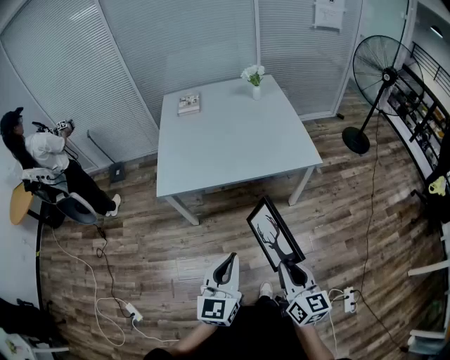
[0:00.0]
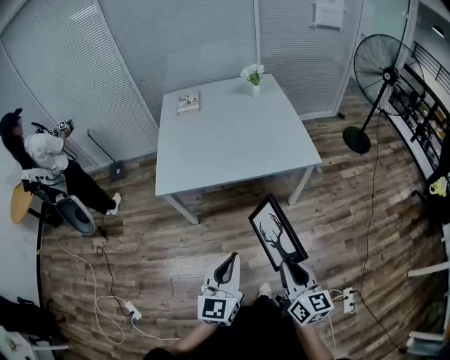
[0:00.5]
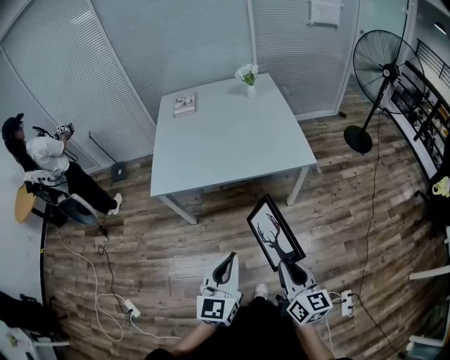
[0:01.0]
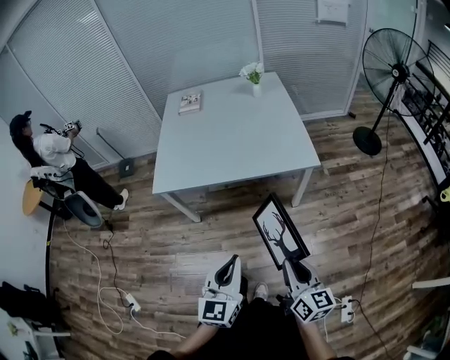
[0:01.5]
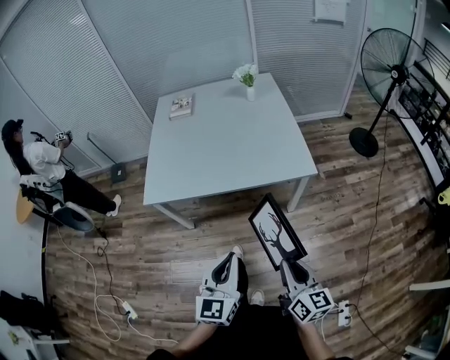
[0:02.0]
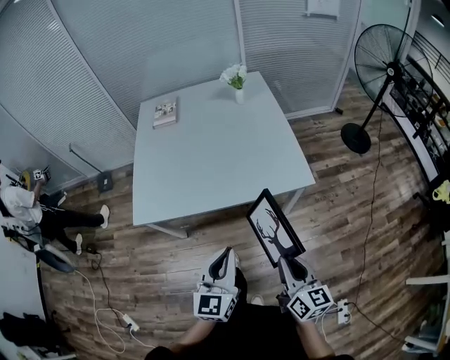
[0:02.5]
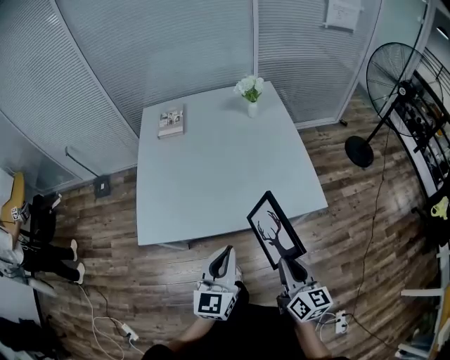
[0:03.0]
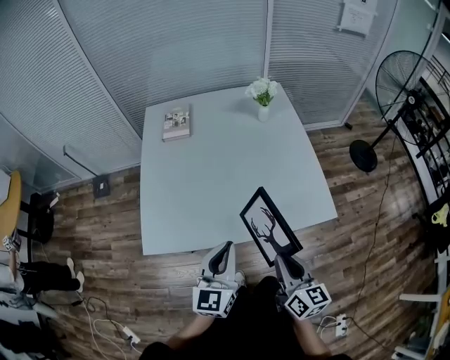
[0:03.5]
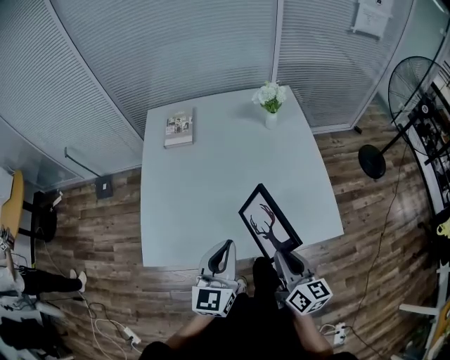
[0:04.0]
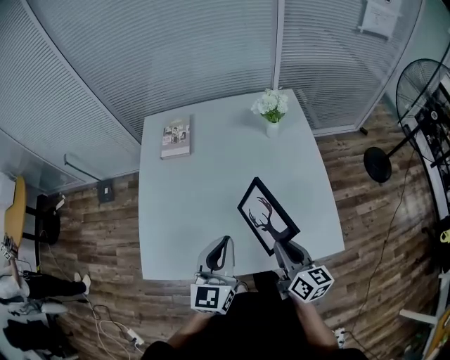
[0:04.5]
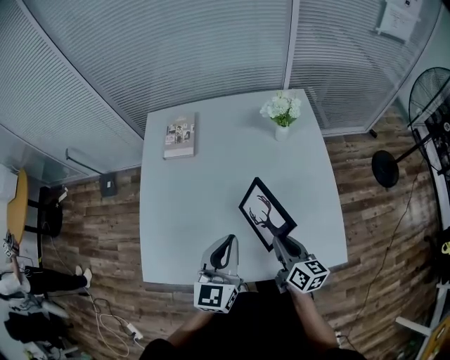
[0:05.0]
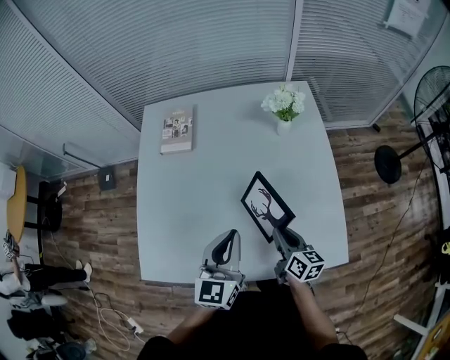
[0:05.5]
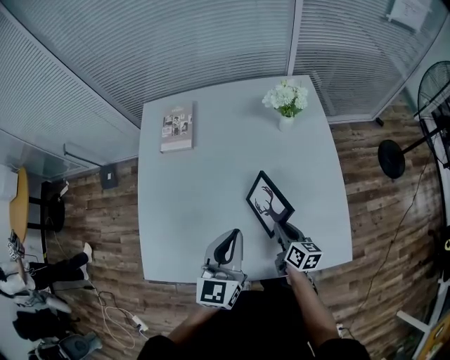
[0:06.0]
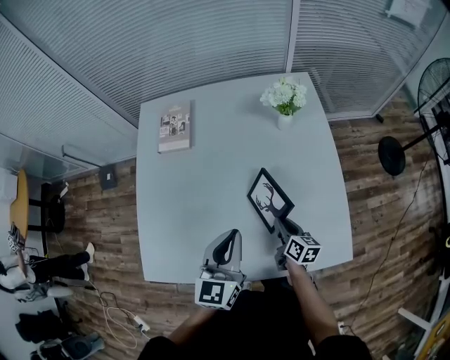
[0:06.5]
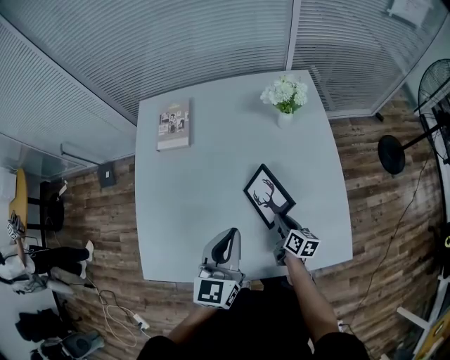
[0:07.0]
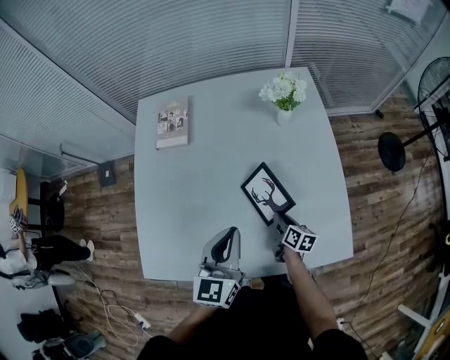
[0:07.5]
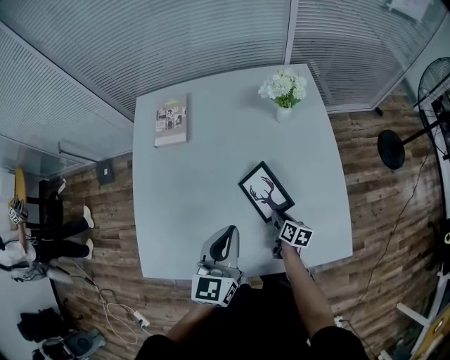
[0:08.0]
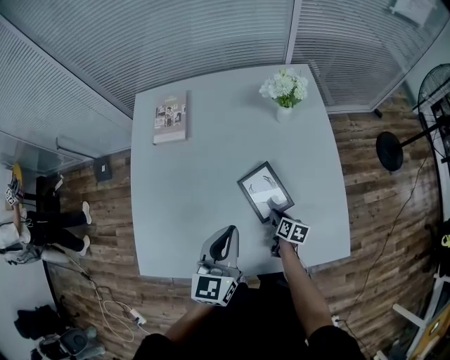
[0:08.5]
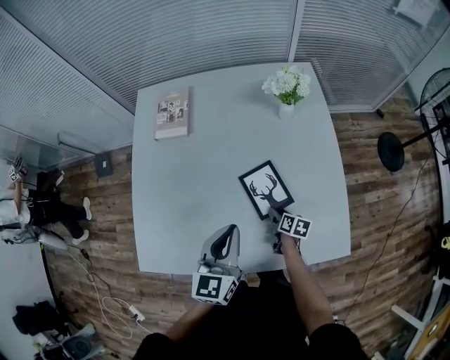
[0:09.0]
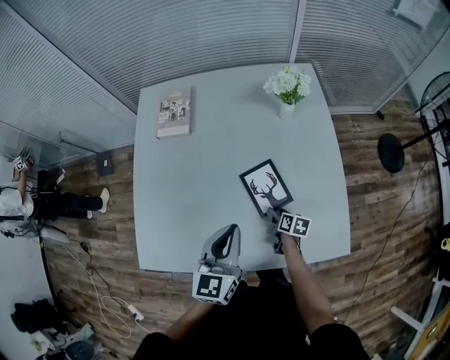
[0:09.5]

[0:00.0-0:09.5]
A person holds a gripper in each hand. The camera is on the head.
0:00.0 to 0:02.0: Both grippers move to the right and forward, roughly 15 cm.
0:02.0 to 0:04.0: The two grippers travel together, forward, approximately 40 cm.
0:04.0 to 0:05.5: The left gripper goes roughly 15 cm forward. Meanwhile the right gripper goes about 25 cm forward and downward.
0:05.5 to 0:07.5: The right gripper goes roughly 15 cm downward.
0:07.5 to 0:09.5: The right gripper travels downward by about 5 cm, and opens its fingers.

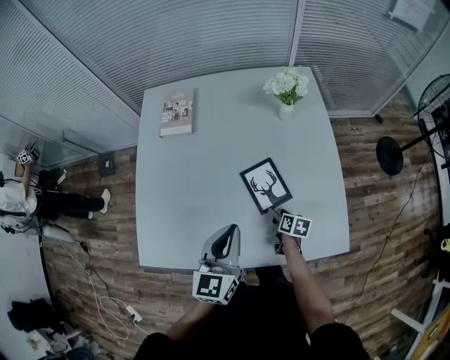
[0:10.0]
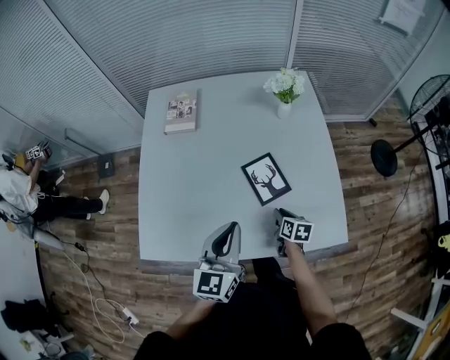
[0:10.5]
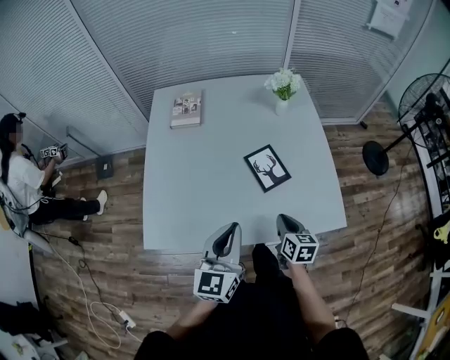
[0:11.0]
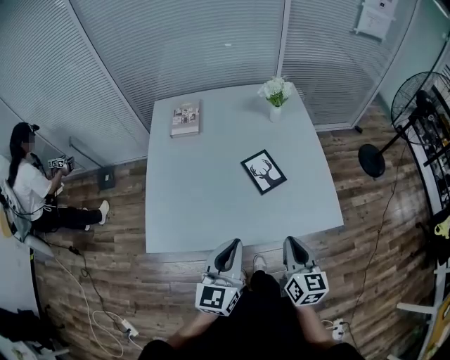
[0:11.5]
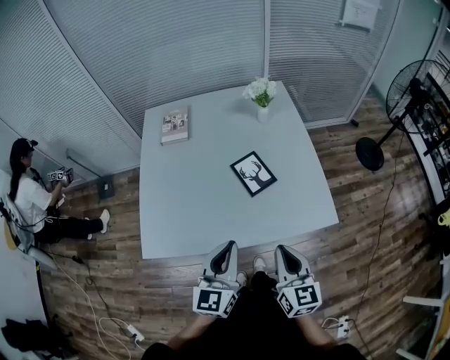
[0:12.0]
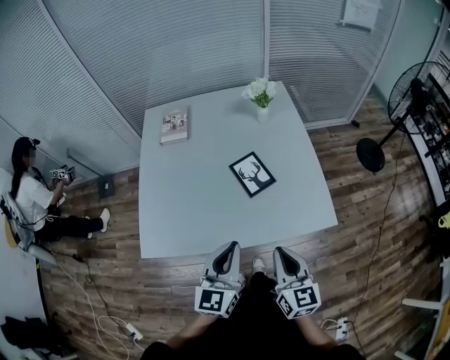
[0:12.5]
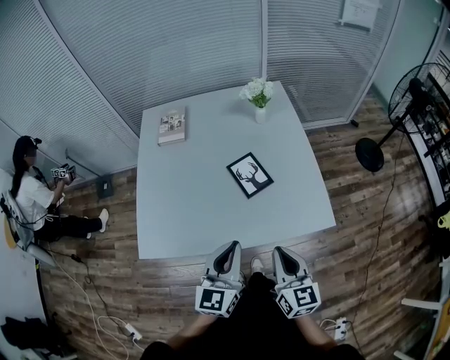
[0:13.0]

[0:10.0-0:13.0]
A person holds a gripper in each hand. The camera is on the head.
0:10.0 to 0:11.5: The right gripper moves upward and backward, approximately 40 cm, tips its fingers upward by some 30 degrees, and closes its fingers. Meanwhile the left gripper travels backward by roughly 20 cm.
0:11.5 to 0:13.0: The left gripper shifts approximately 5 cm to the right.

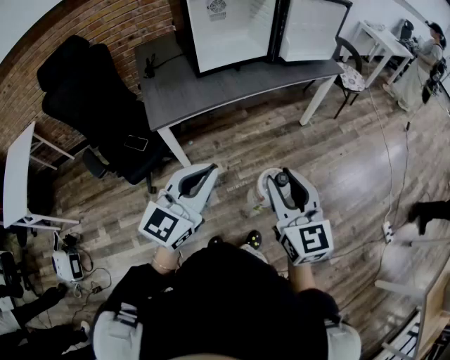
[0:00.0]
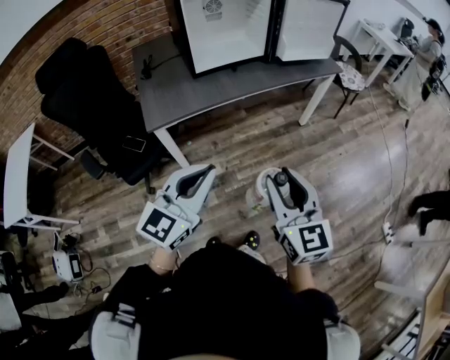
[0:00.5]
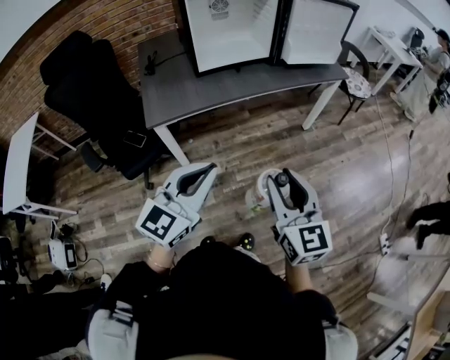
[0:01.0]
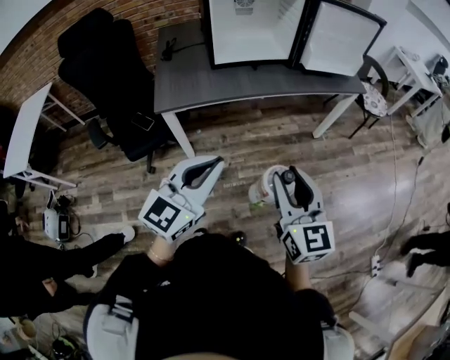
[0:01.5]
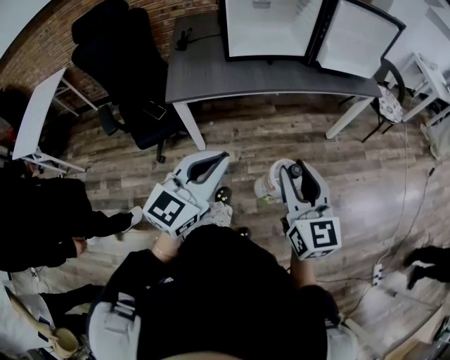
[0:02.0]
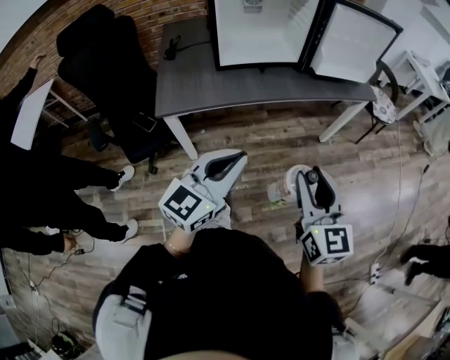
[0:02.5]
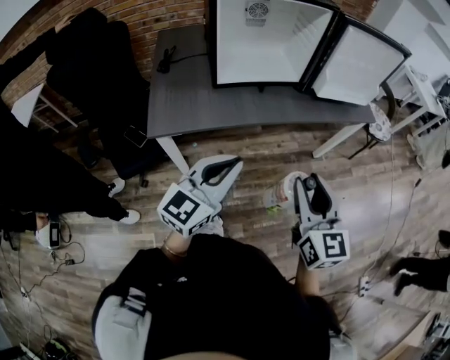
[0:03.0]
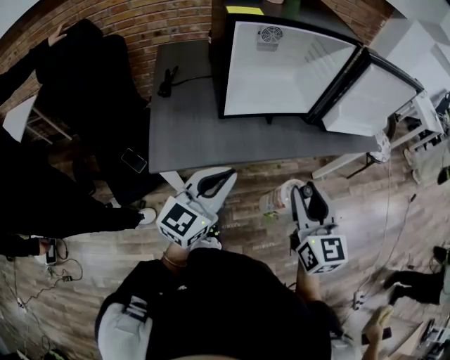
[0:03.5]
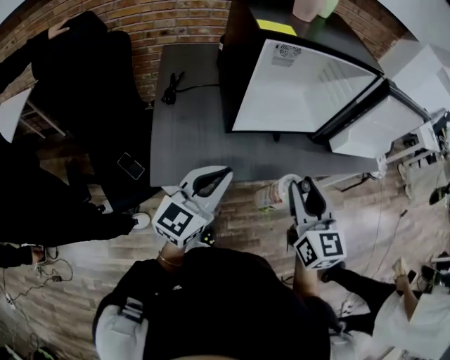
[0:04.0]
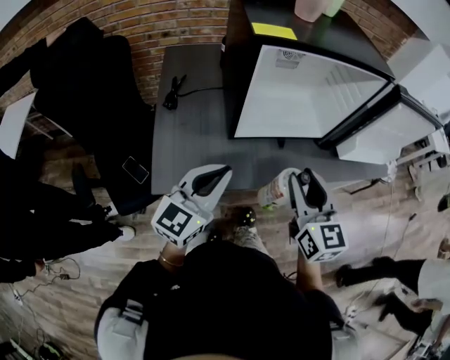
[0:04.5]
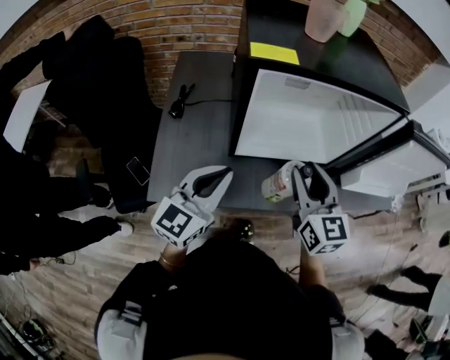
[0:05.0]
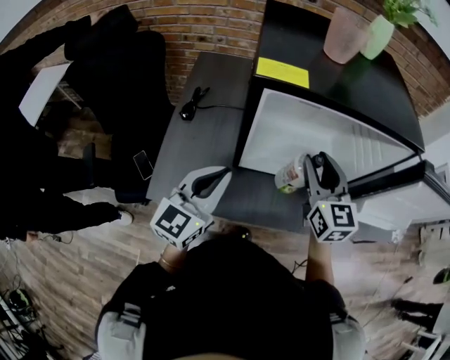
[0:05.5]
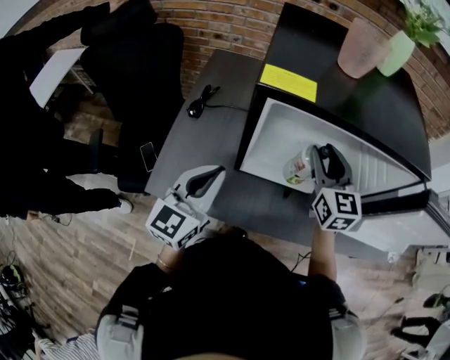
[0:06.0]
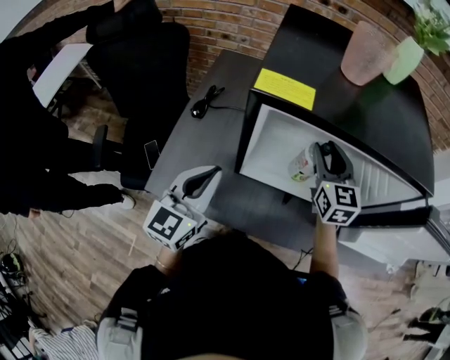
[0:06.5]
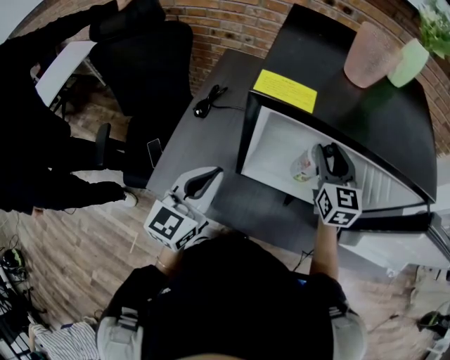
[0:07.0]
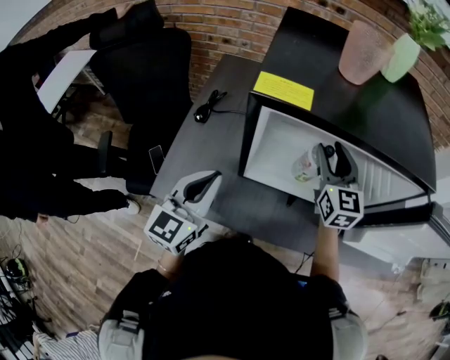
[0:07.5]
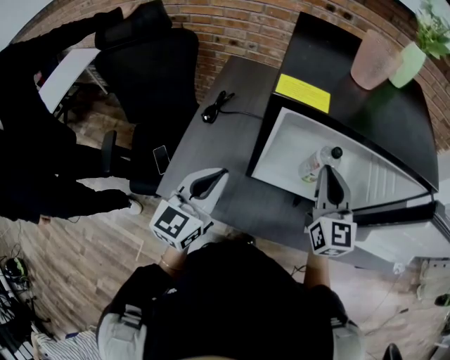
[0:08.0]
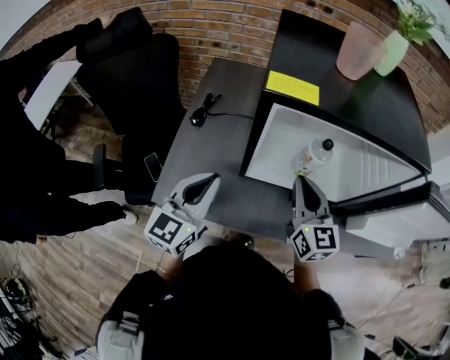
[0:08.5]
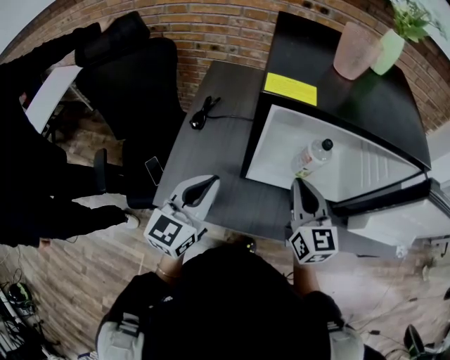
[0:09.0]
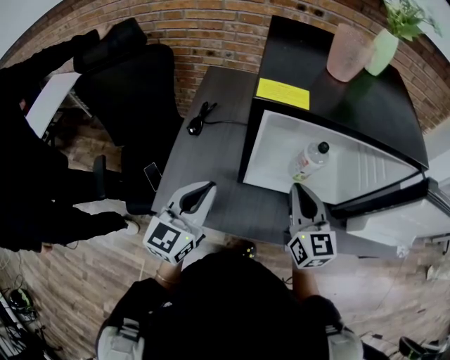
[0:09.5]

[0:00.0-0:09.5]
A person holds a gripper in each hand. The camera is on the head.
0:00.0 to 0:02.0: The left gripper heads to the right, covering approximately 5 cm. The right gripper is displaced forward and to the right by roughly 10 cm.
0:02.0 to 0:04.0: The grippers both shift forward and to the left by approximately 35 cm.
0:04.0 to 0:05.5: The left gripper is displaced forward by some 15 cm, while the right gripper heads forward, covering about 25 cm.
0:05.5 to 0:07.5: The right gripper shifts roughly 10 cm forward.
0:07.5 to 0:09.5: The right gripper goes roughly 15 cm backward and to the left, and closes its fingers.

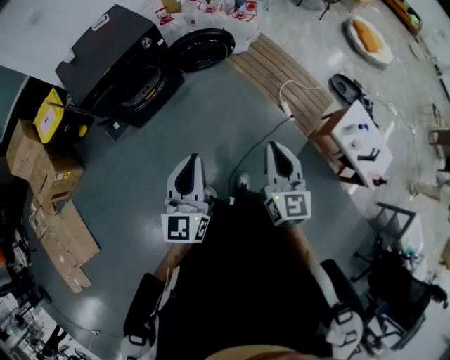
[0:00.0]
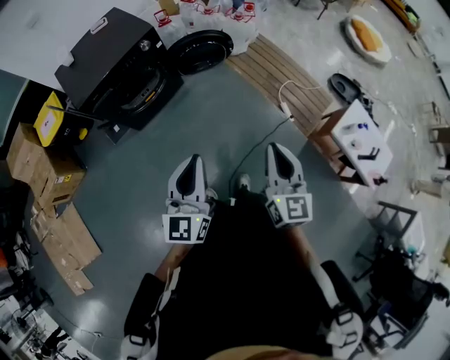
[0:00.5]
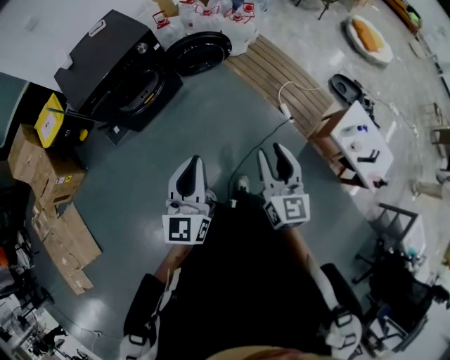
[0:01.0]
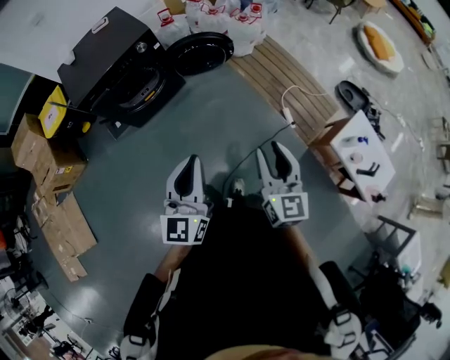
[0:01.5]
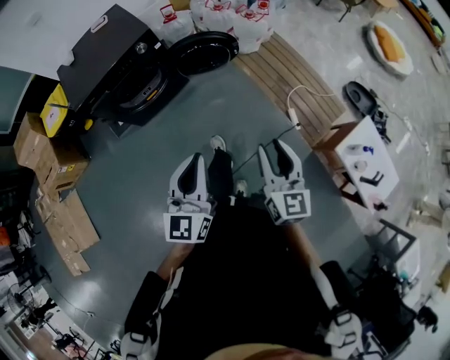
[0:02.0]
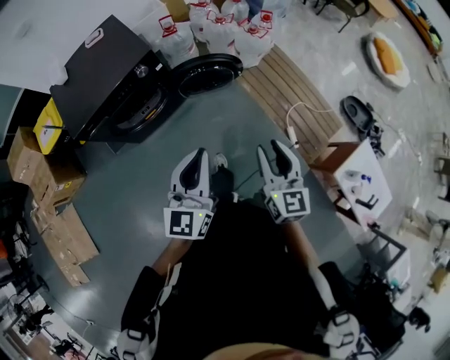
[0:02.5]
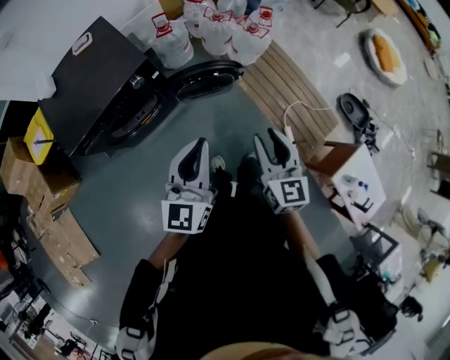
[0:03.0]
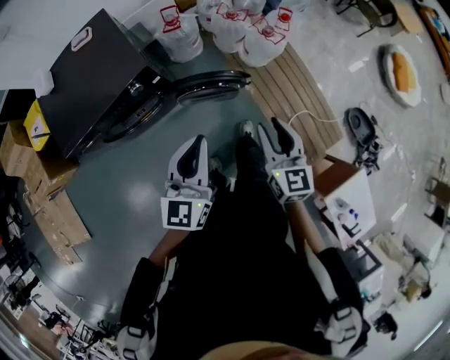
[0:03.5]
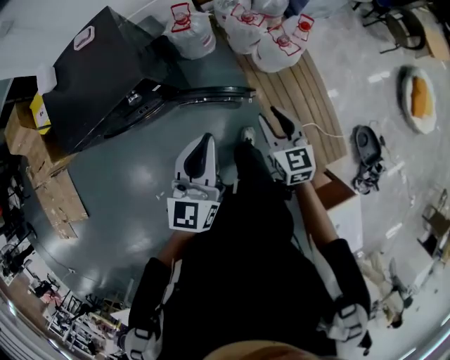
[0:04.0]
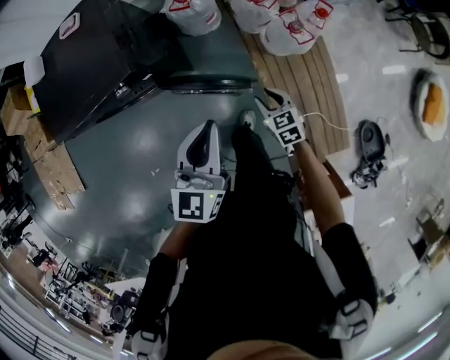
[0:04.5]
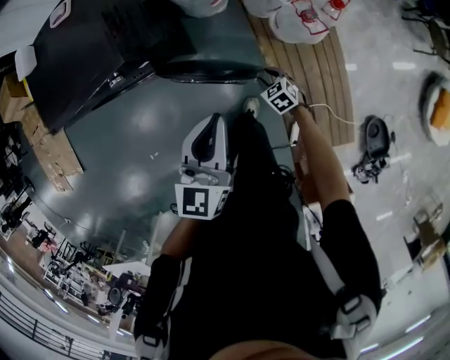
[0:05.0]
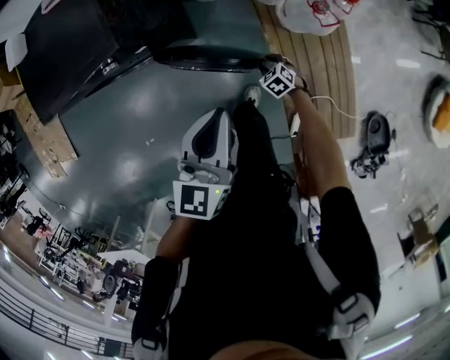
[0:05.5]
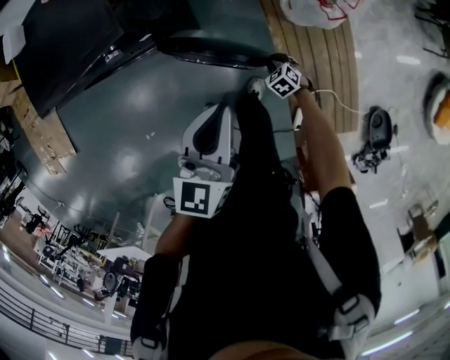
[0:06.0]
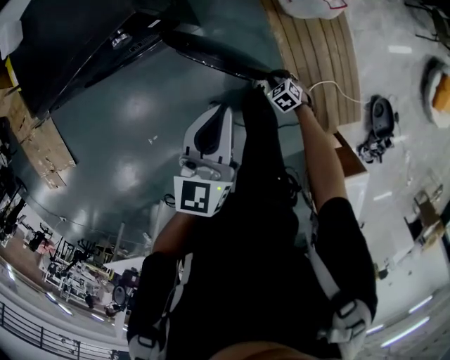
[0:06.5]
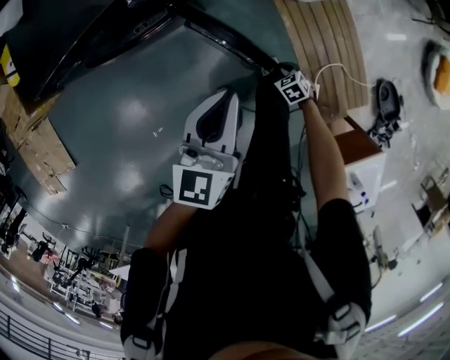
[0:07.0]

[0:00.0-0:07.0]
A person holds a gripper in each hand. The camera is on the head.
0:00.0 to 0:02.0: The right gripper moves forward and to the right, roughly 15 cm, and opens, while the left gripper shifts some 15 cm to the right and forward.
0:02.0 to 0:03.5: The pair of grippers is taken forward, about 40 cm.
0:03.5 to 0:05.0: The right gripper goes approximately 40 cm downward, and tips its fingers downward by some 40 degrees. Meanwhile the left gripper changes place by approximately 25 cm.
0:05.0 to 0:07.0: The left gripper goes roughly 25 cm to the left and backward. The right gripper goes roughly 25 cm backward, to the left and downward.
